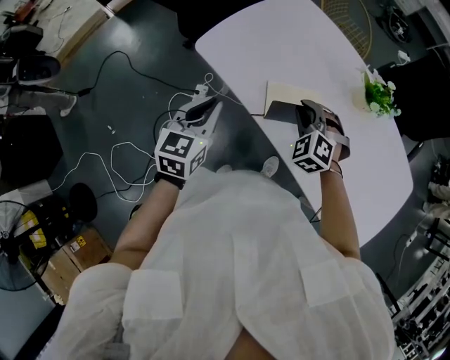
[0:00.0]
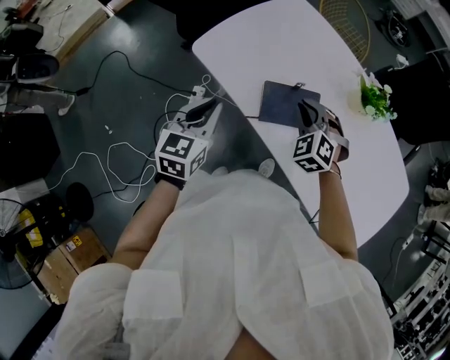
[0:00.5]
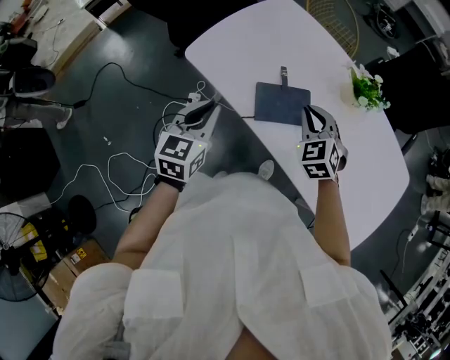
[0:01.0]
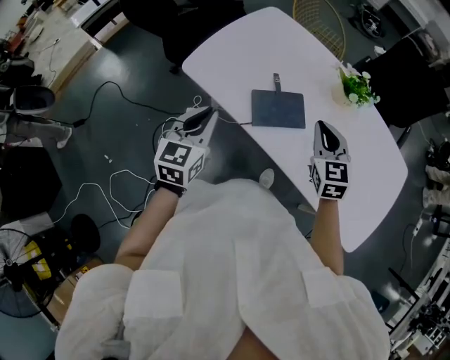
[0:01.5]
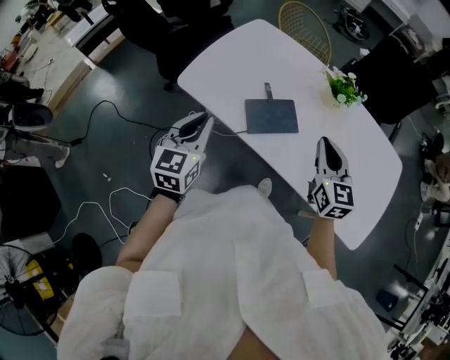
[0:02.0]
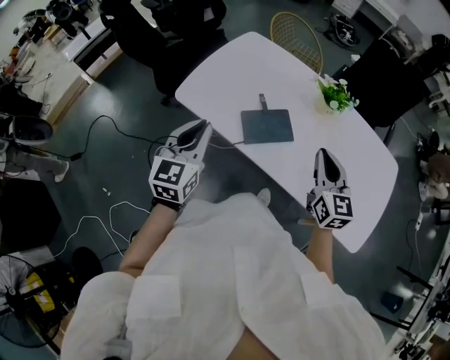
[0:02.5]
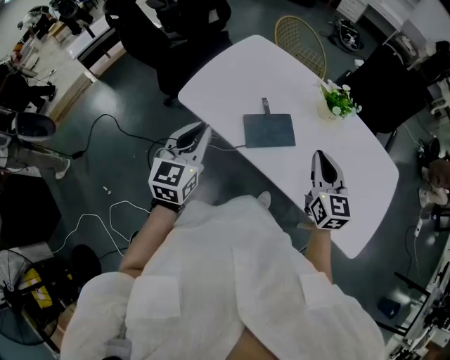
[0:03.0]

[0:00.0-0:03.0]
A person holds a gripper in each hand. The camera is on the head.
0:00.0 to 0:01.5: The right gripper shifts some 15 cm to the right and upward, and rolls clockwise, seen from behind, by some 50 degrees.
0:01.5 to 0:03.0: The right gripper heads backward and upward, covering some 10 cm. Meanwhile the left gripper moves upward, about 5 cm.

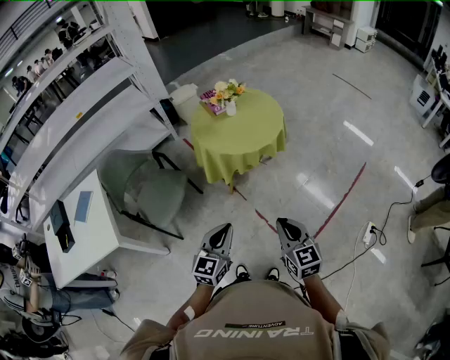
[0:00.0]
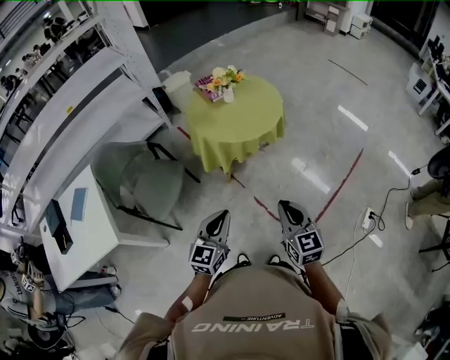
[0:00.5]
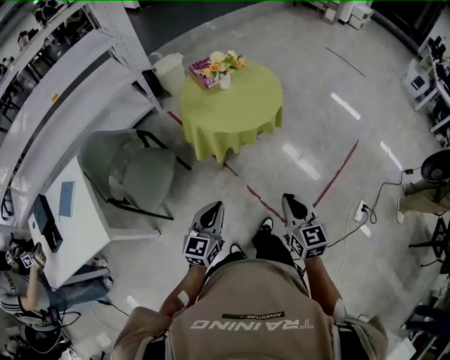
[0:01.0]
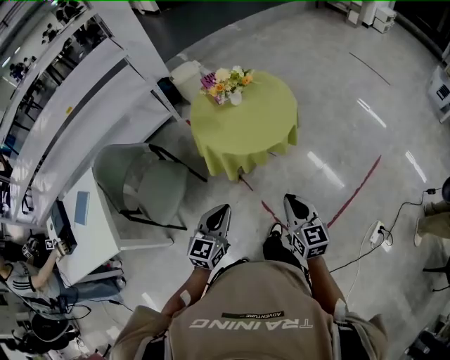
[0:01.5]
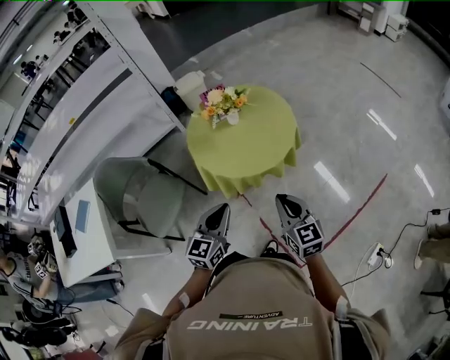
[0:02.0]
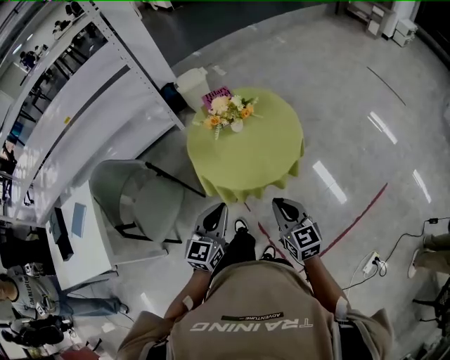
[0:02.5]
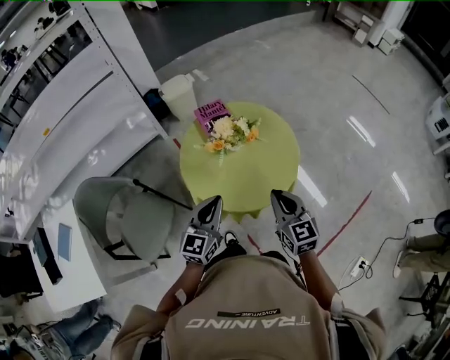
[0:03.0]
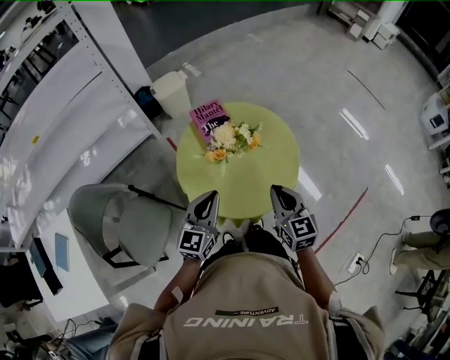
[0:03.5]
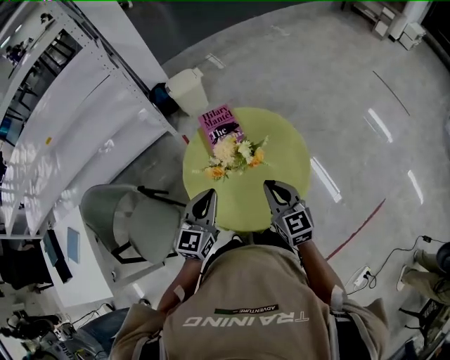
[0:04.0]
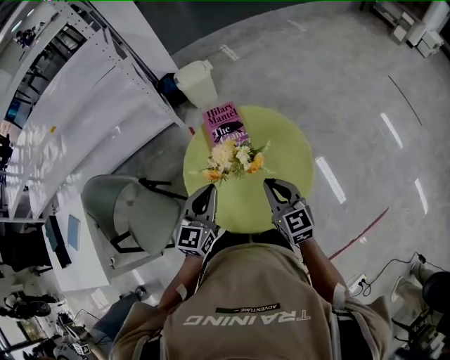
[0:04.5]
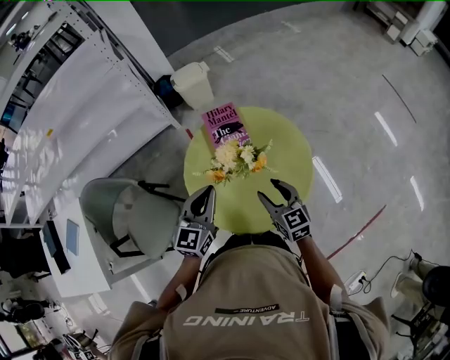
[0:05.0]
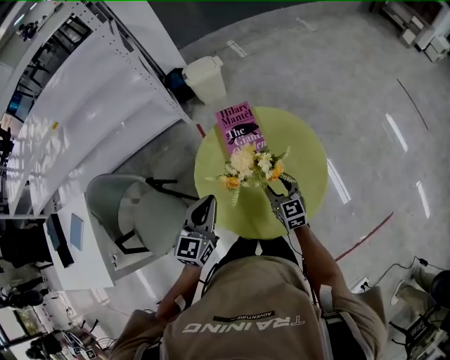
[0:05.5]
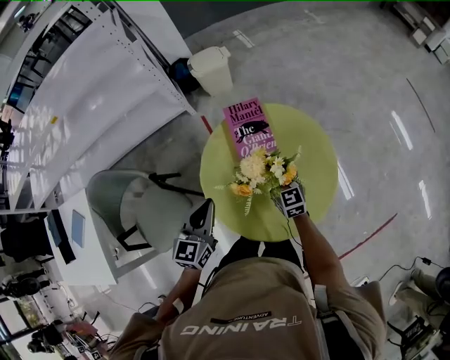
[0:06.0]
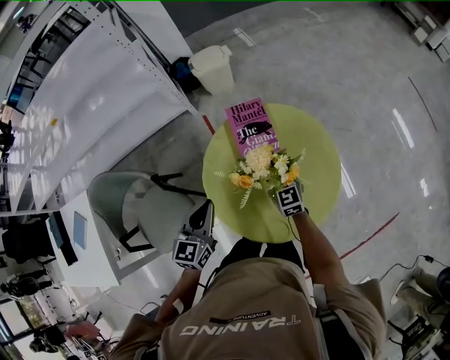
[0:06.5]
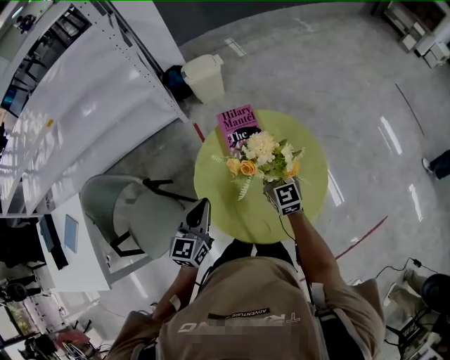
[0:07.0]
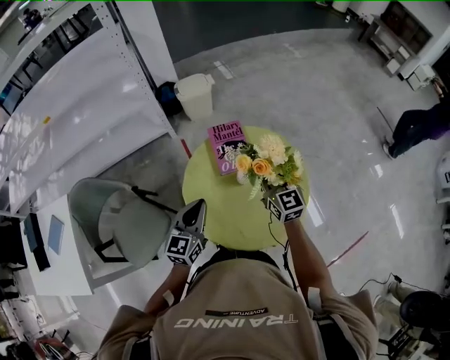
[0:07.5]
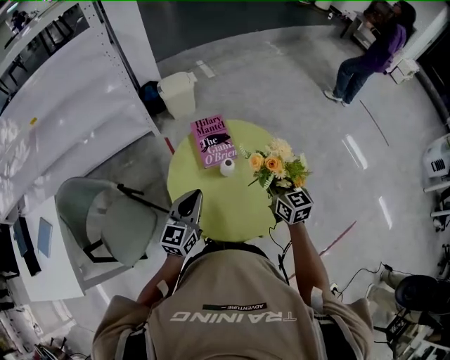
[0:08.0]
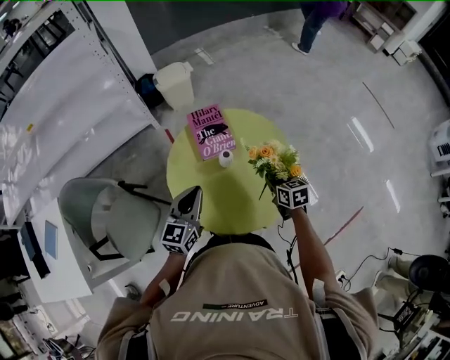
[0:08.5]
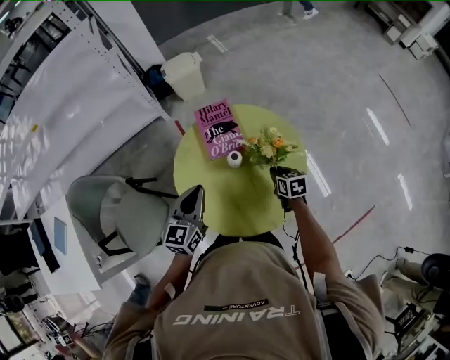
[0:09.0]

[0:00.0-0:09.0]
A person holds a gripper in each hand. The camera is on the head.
0:00.0 to 0:02.0: Both grippers move forward, some 30 cm.
0:02.0 to 0:04.5: The grippers both shift forward by approximately 40 cm.
0:04.5 to 0:07.0: The right gripper is displaced forward and to the left by approximately 15 cm, and opens, then closes again; the left gripper shifts some 10 cm to the left and downward.
0:07.0 to 0:09.0: The right gripper is displaced downward, to the right and backward by roughly 25 cm, and tilts its fingers some 40 degrees downward. Meanwhile the left gripper is displaced to the right by some 5 cm.

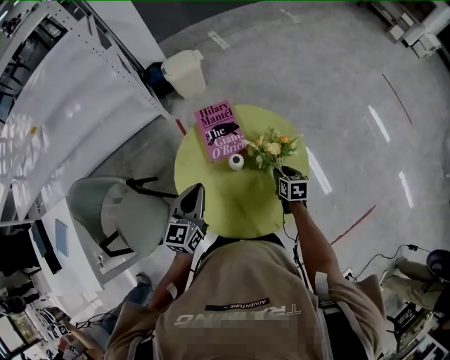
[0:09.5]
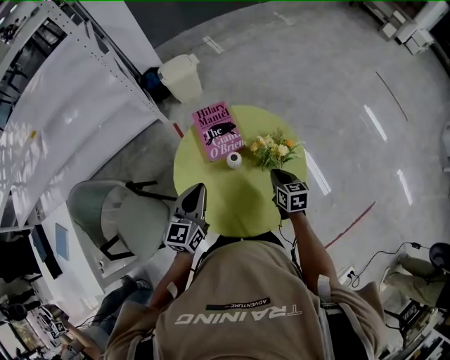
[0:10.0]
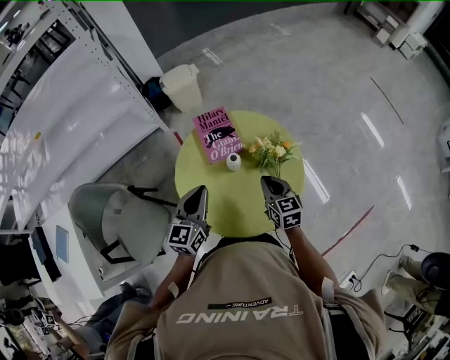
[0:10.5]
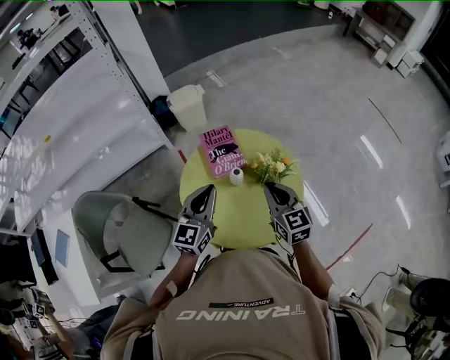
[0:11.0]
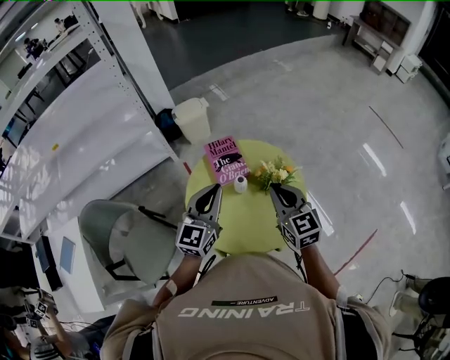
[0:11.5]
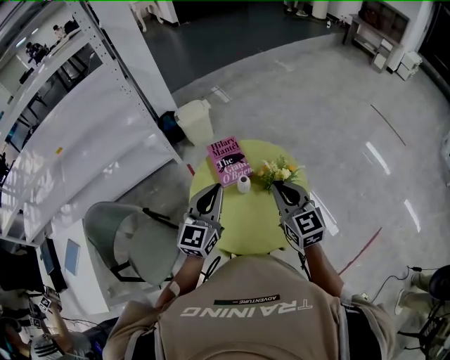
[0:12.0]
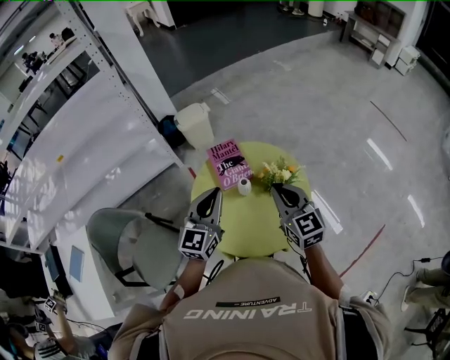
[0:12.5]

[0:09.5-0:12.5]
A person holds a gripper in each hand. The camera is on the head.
0:09.5 to 0:11.0: The left gripper is displaced upward by approximately 10 cm. The right gripper is displaced upward by about 25 cm, tips its fingers upward by approximately 30 degrees, and closes its fingers.
0:11.0 to 0:12.5: The right gripper travels upward by roughly 5 cm.

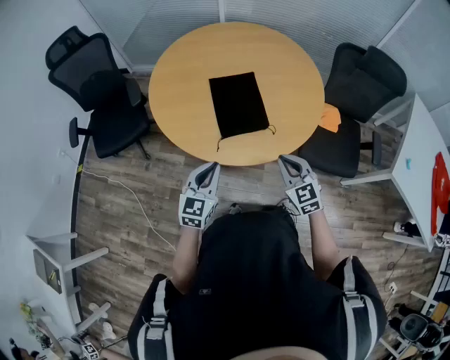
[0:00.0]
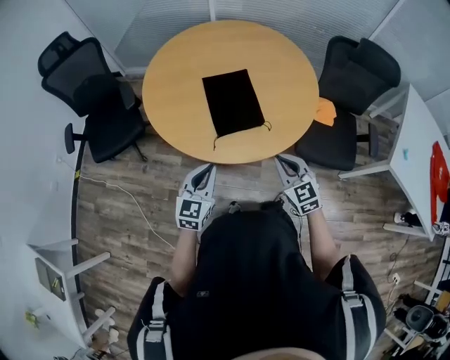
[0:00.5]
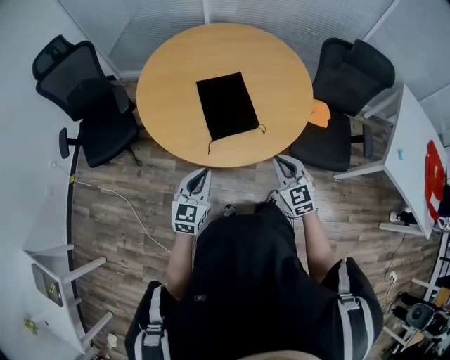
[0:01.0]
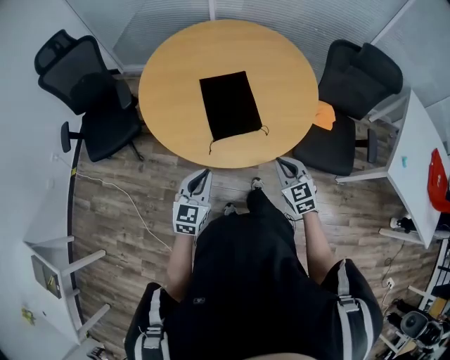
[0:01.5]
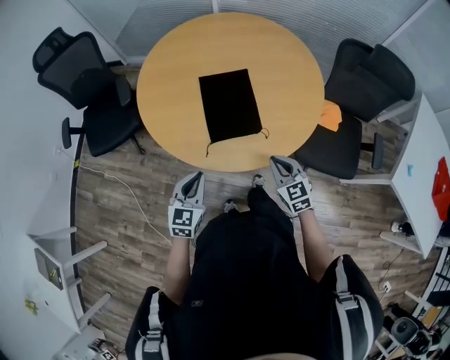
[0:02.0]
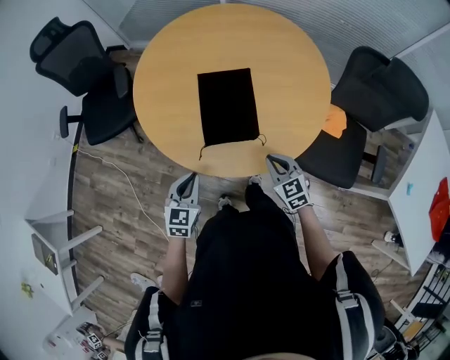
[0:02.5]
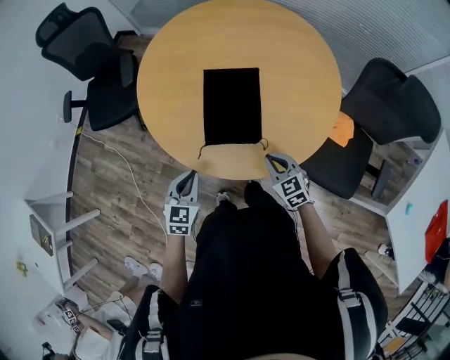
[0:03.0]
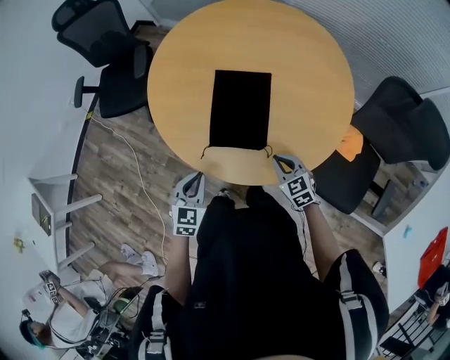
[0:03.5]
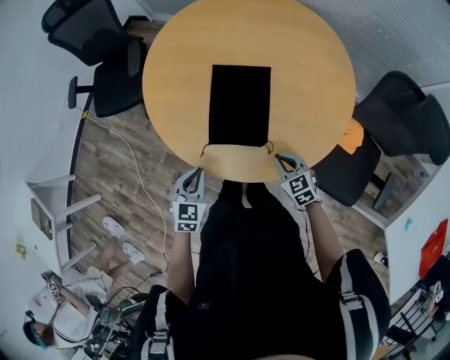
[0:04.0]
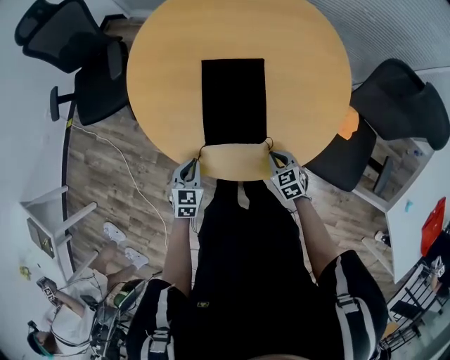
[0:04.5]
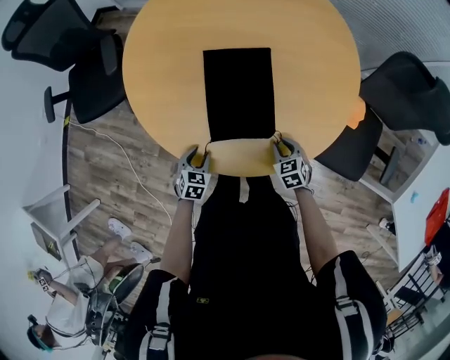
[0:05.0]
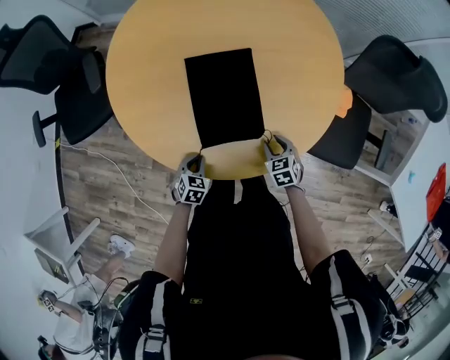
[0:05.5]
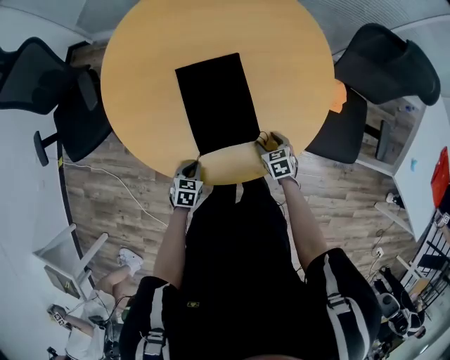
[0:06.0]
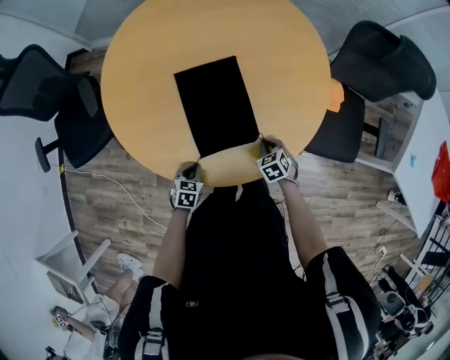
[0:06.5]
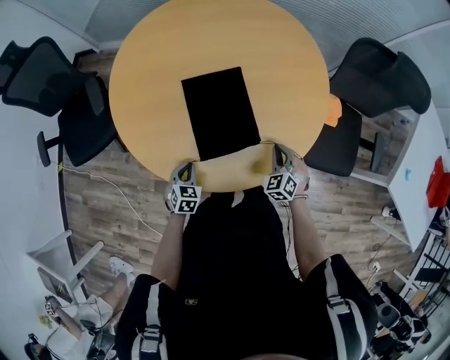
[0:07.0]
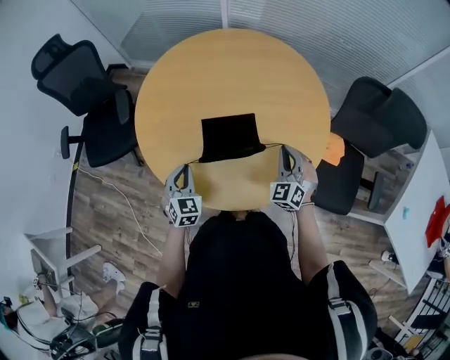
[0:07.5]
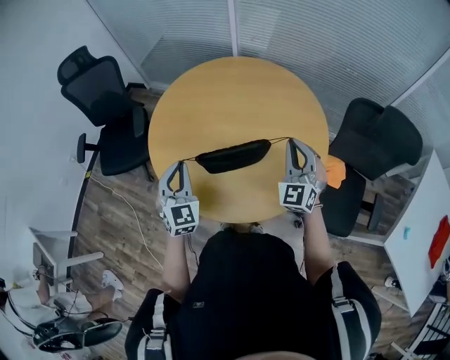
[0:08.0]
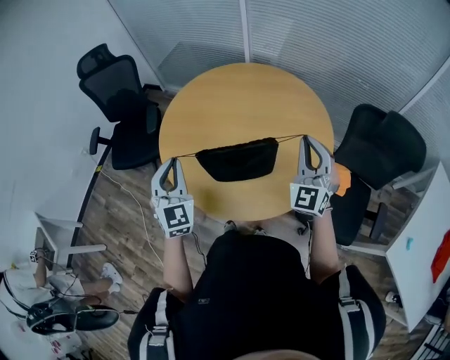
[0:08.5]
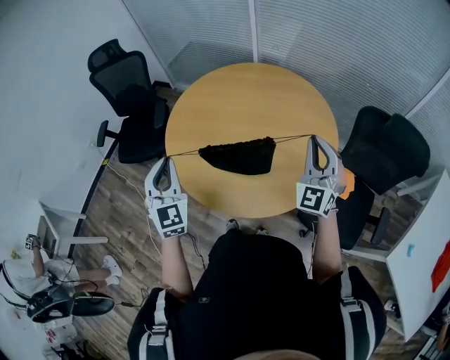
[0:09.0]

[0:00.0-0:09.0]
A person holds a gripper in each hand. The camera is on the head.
0:00.0 to 0:02.0: The right gripper moves downward and forward, approximately 10 cm.
0:02.0 to 0:04.5: Both grippers travel together downward and forward, roughly 20 cm. The right gripper rotates about 20 degrees. The left gripper changes its angle by some 20 degrees.
0:04.5 to 0:07.0: The right gripper shifts by some 5 cm, swivels some 40 degrees, and opens and closes again; the left gripper shifts some 5 cm downward, and opens, then closes once more.
0:07.0 to 0:09.0: Both grippers travel together upward, approximately 40 cm. The right gripper points its fingers roughly 50 degrees further upward. The left gripper points its fingers approximately 50 degrees further upward.

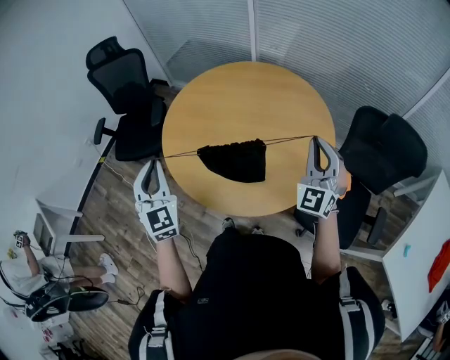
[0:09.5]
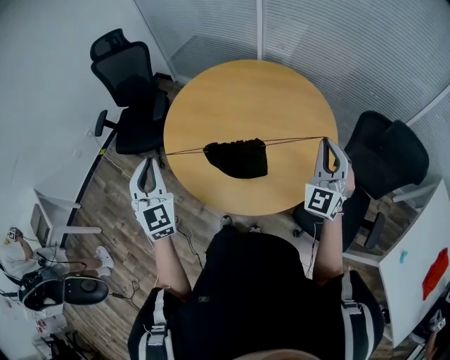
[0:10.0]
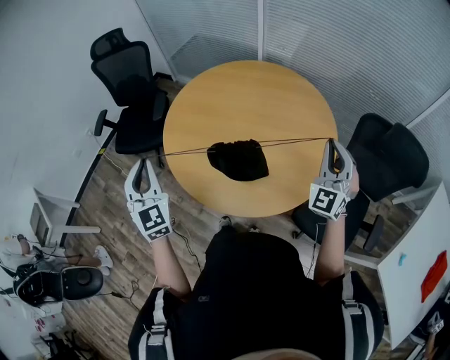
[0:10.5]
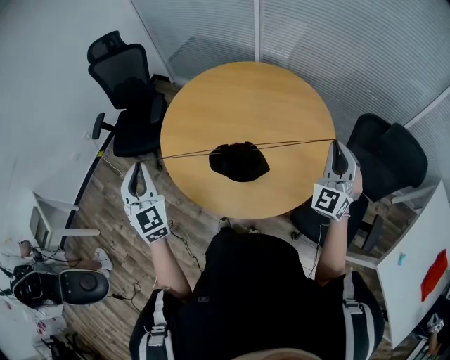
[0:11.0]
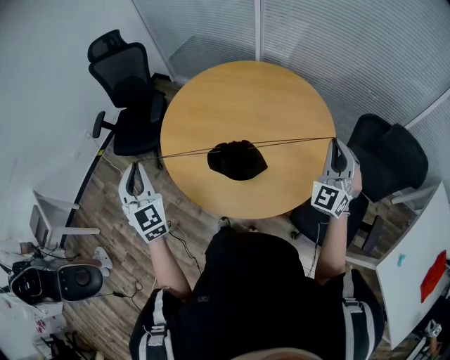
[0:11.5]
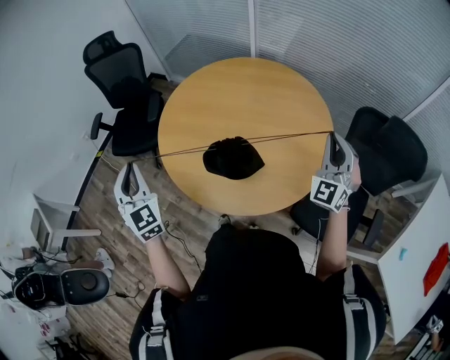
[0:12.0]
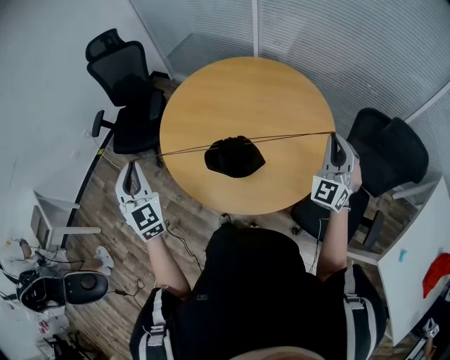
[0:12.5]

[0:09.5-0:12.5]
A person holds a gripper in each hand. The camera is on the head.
0:09.5 to 0:11.0: The right gripper shifts about 5 cm to the right.
0:11.0 to 0:12.5: There are only small adjustments of the grippers.
